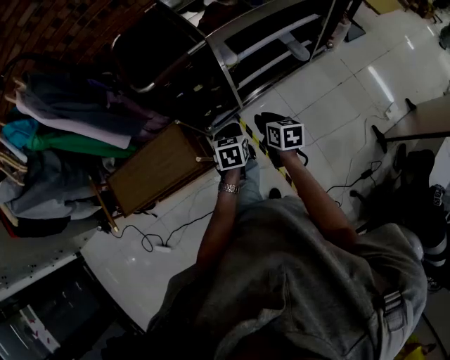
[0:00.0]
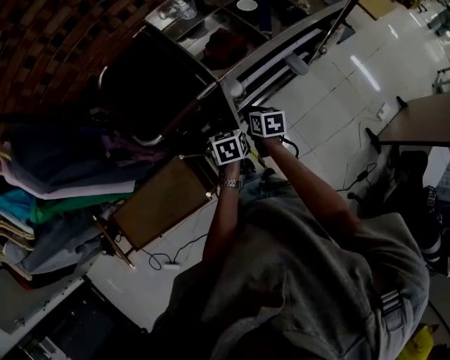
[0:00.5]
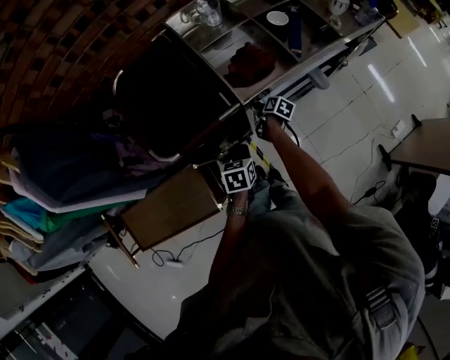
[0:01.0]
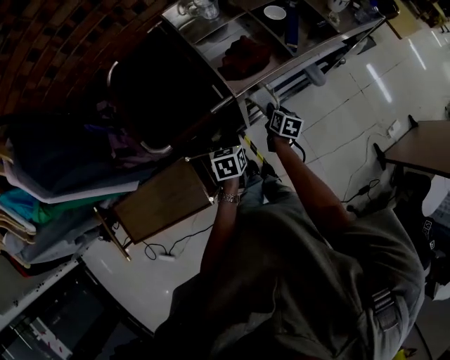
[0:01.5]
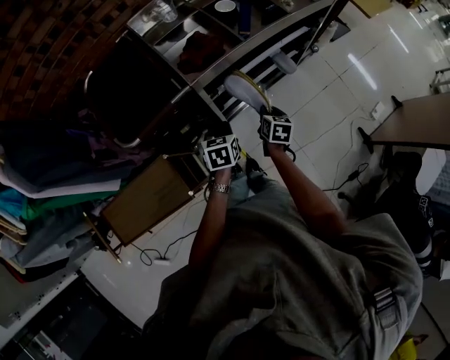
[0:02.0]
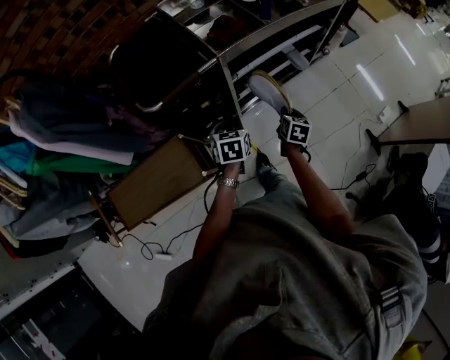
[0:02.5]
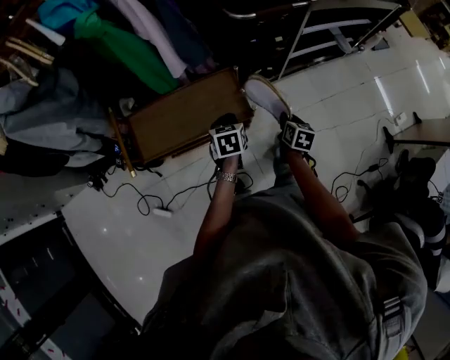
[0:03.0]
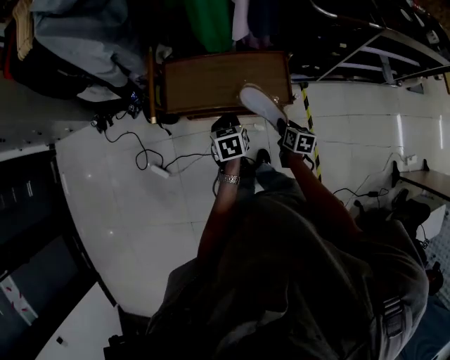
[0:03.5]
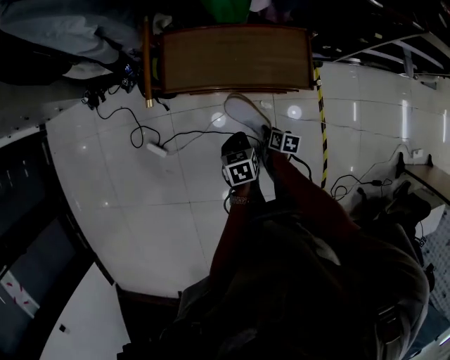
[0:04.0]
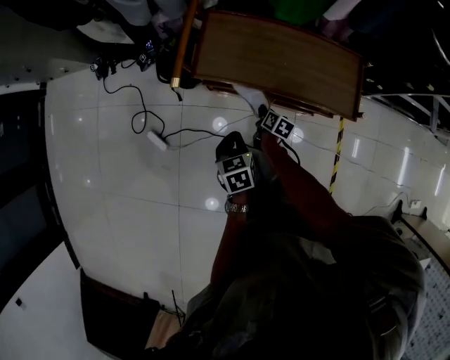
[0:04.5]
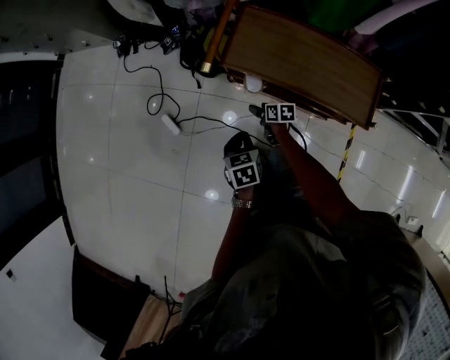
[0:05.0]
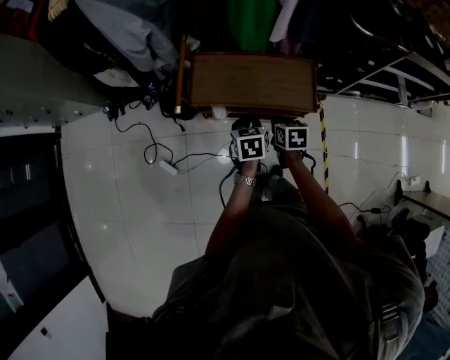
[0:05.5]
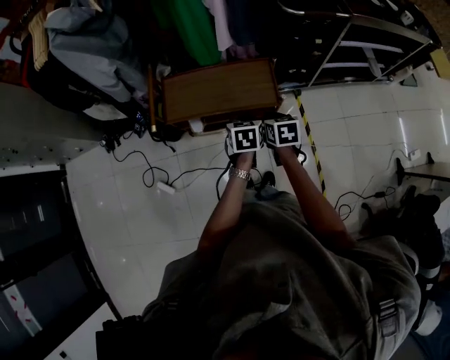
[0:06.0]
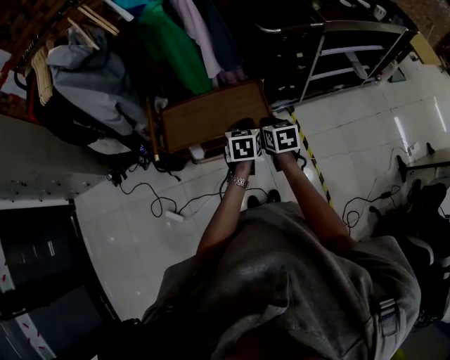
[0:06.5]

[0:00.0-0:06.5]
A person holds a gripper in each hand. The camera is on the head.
0:00.0 to 0:02.0: The left gripper travels forward by some 15 cm. Meanwhile the right gripper moves forward and to the right, about 20 cm, rotates some 20 degrees, and opens, then closes again.
0:02.0 to 0:04.5: The pair of grippers is taken approximately 90 cm. The right gripper turns by roughly 30 degrees, while the left gripper changes its angle by about 50 degrees.
0:04.5 to 0:06.5: The left gripper travels upward by approximately 30 cm, and turns by roughly 40 degrees, while the right gripper goes roughly 50 cm upward, turns by roughly 30 degrees, and opens, then closes once more.

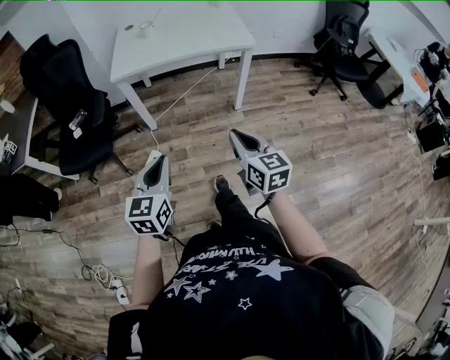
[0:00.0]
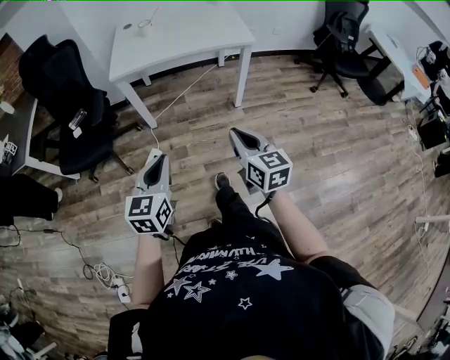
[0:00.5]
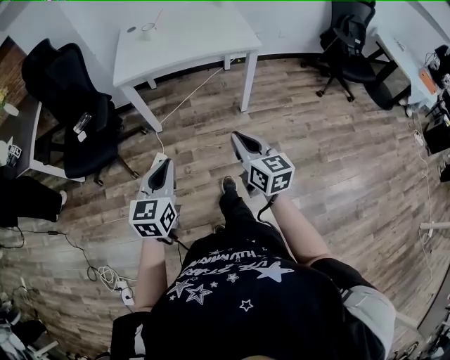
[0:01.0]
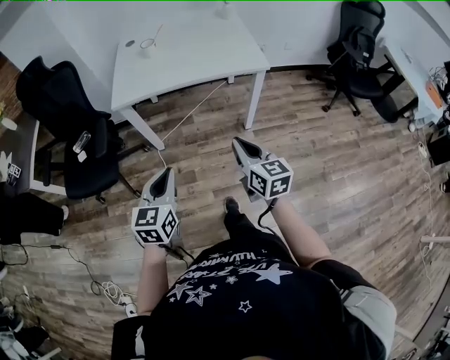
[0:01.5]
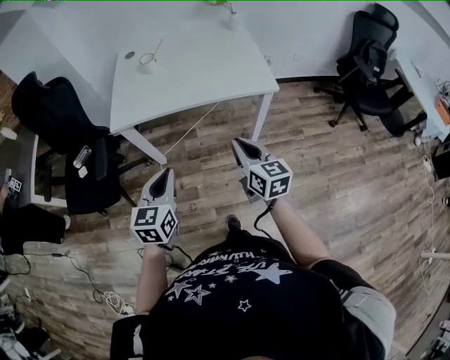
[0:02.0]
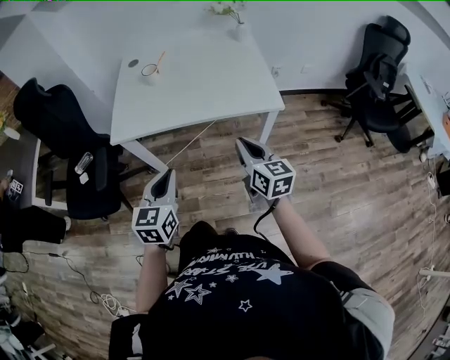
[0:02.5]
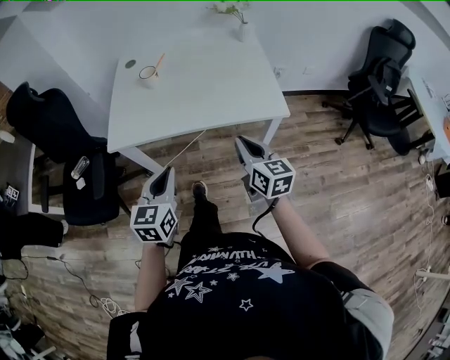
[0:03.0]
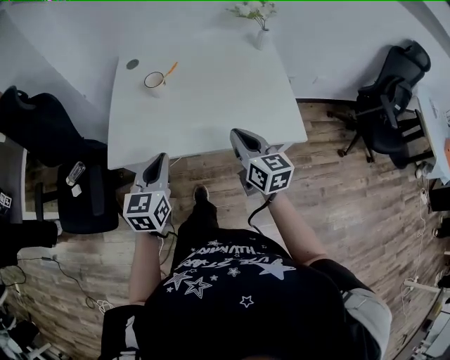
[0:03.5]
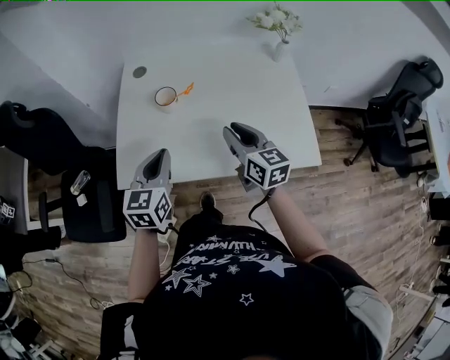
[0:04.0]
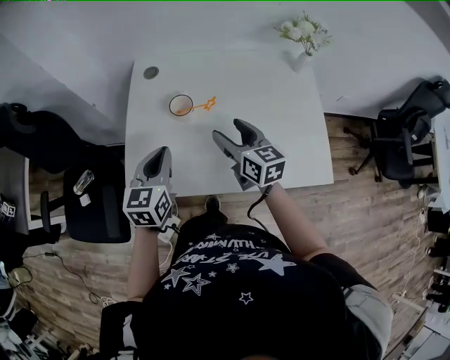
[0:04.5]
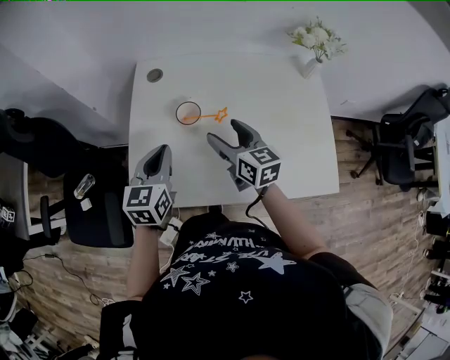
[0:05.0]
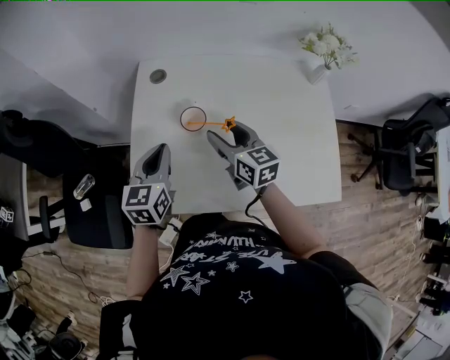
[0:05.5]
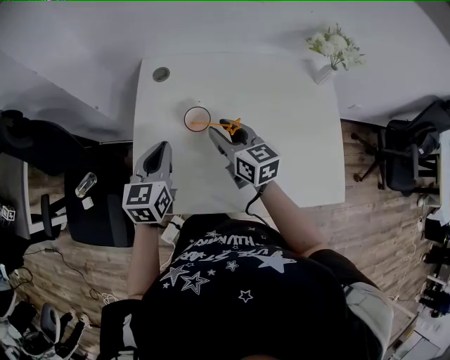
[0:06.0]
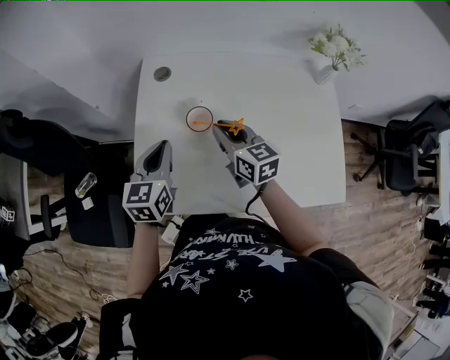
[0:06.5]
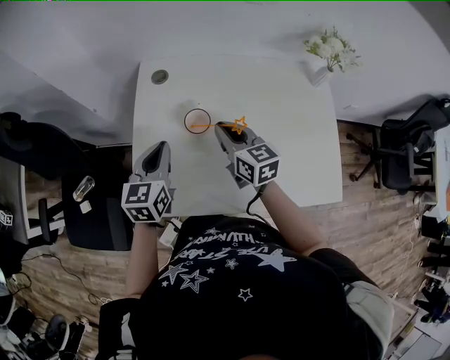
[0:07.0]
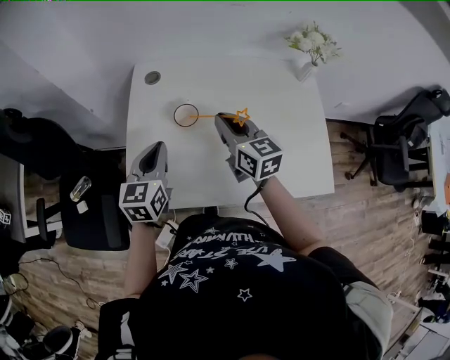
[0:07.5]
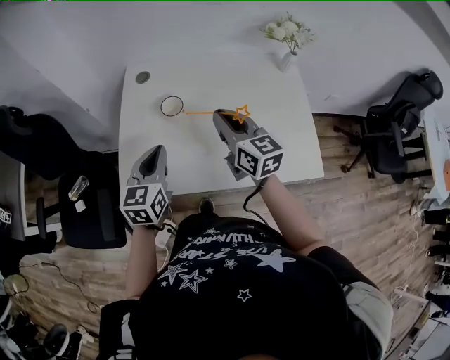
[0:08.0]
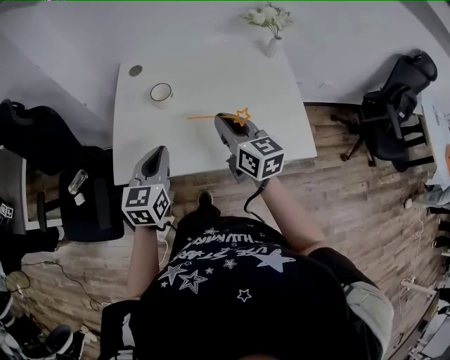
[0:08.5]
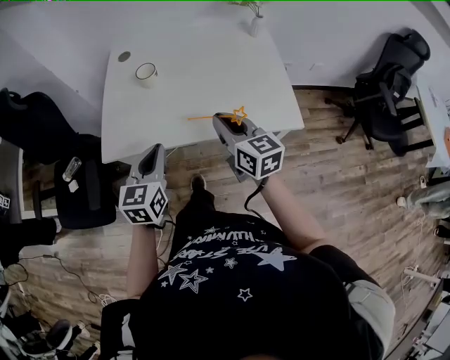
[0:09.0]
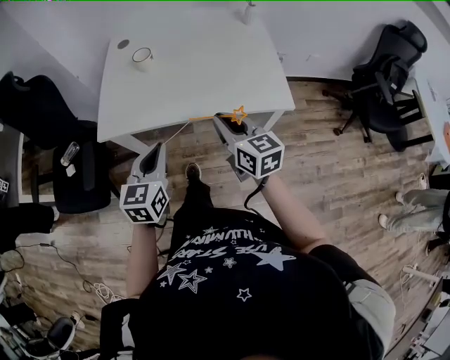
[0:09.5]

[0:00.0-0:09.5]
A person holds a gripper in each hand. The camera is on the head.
0:00.0 to 0:02.0: The two grippers go some 30 cm forward.
0:02.0 to 0:04.0: Both grippers move forward, roughly 40 cm.
0:04.0 to 0:05.5: The two grippers go about 15 cm forward and to the left. The right gripper opens its fingers.
0:05.5 to 0:07.5: The right gripper travels upward by about 5 cm, and closes its fingers.
0:07.5 to 0:09.5: Both grippers travel together backward, about 35 cm.

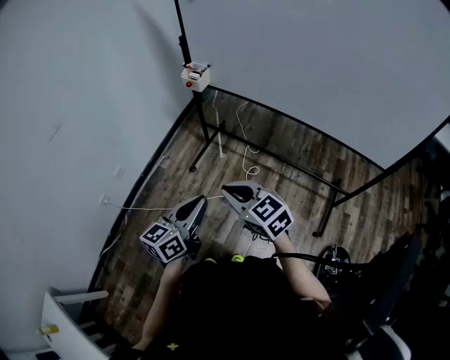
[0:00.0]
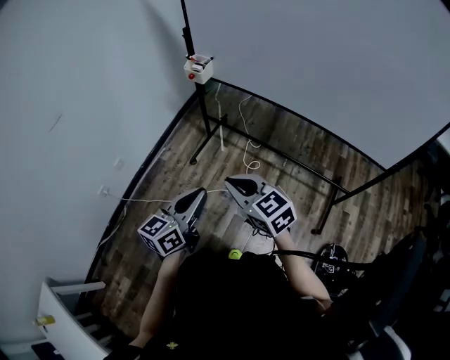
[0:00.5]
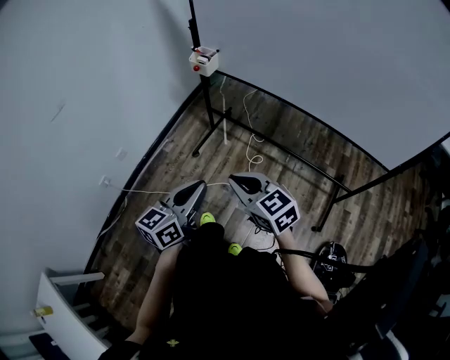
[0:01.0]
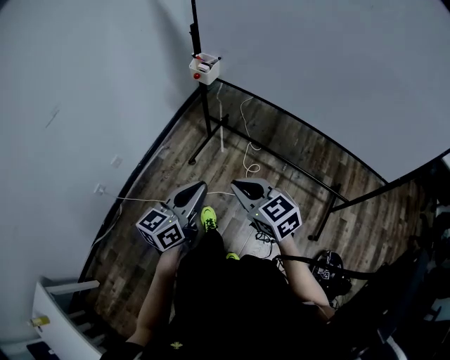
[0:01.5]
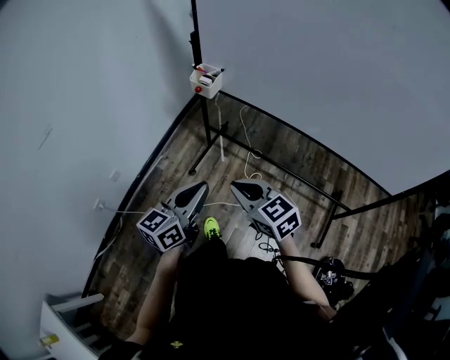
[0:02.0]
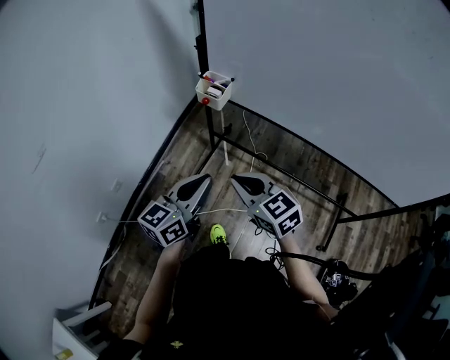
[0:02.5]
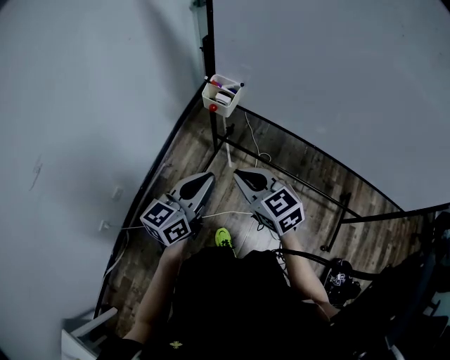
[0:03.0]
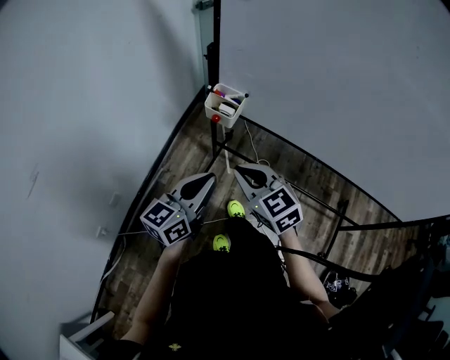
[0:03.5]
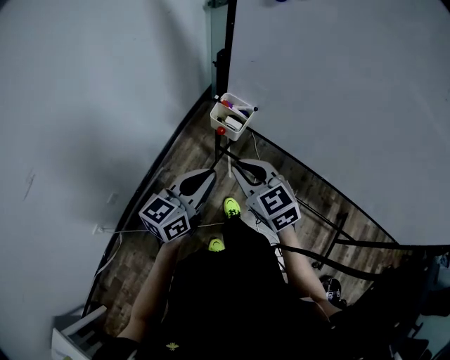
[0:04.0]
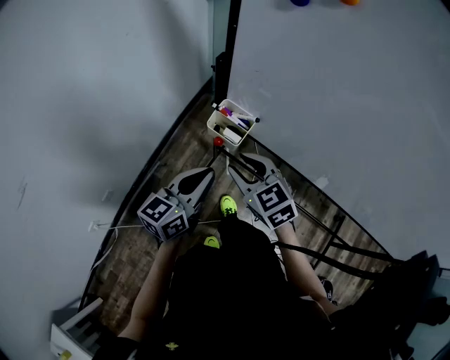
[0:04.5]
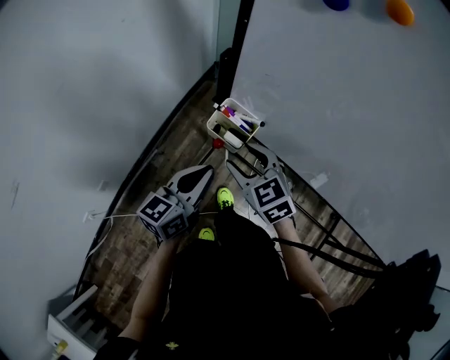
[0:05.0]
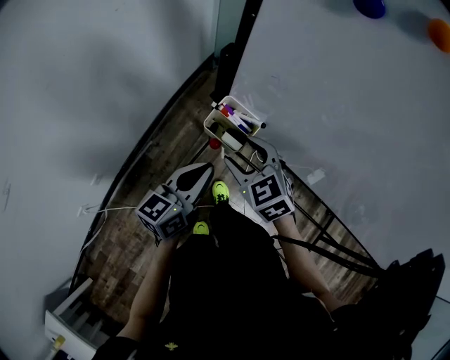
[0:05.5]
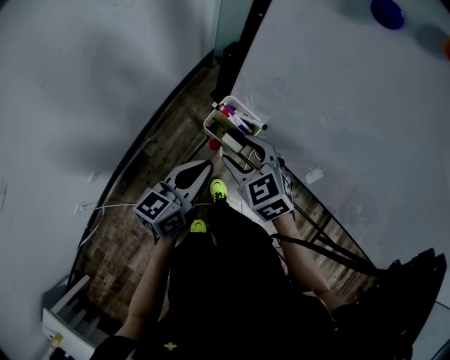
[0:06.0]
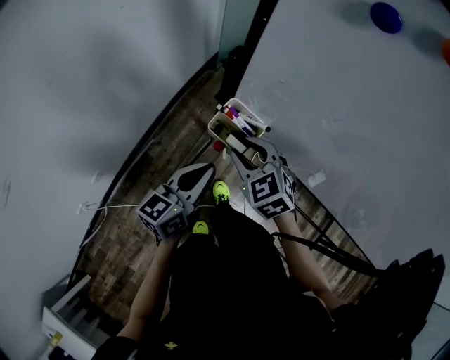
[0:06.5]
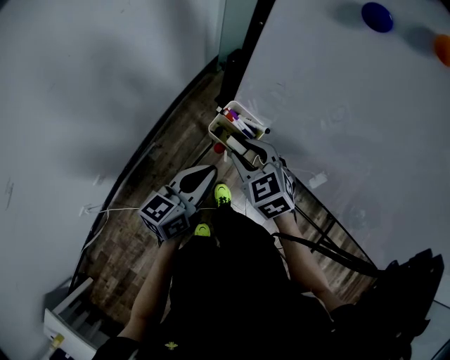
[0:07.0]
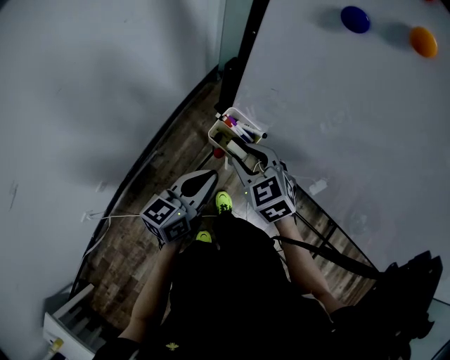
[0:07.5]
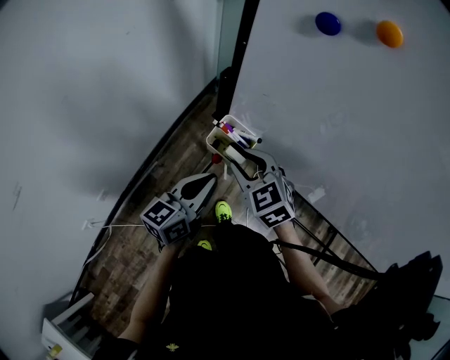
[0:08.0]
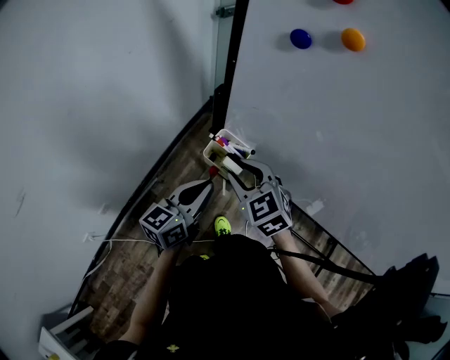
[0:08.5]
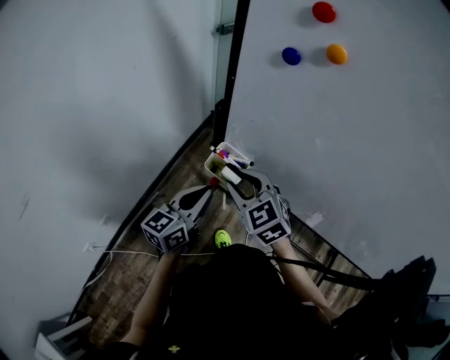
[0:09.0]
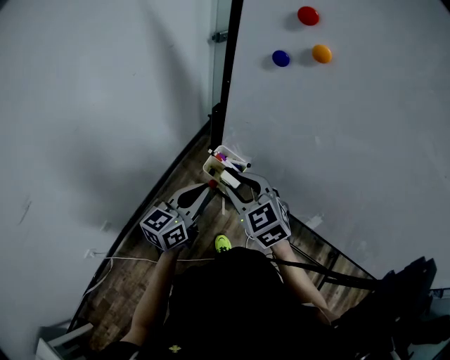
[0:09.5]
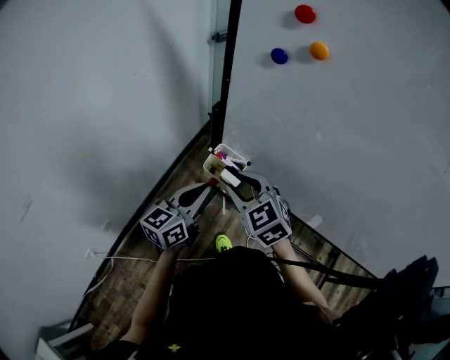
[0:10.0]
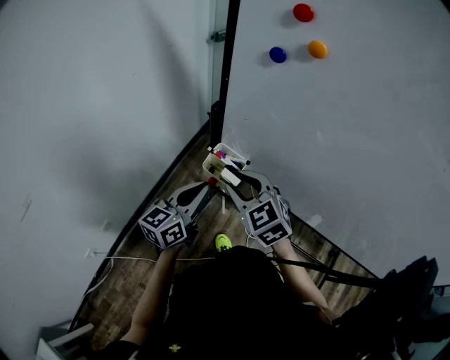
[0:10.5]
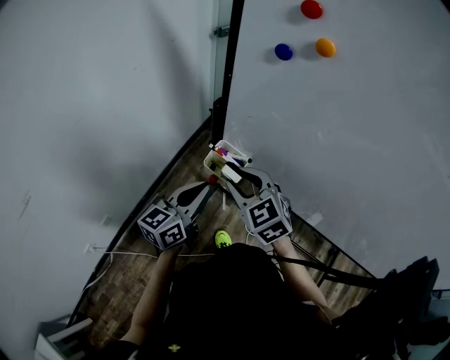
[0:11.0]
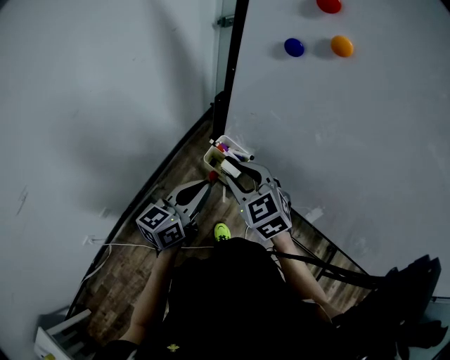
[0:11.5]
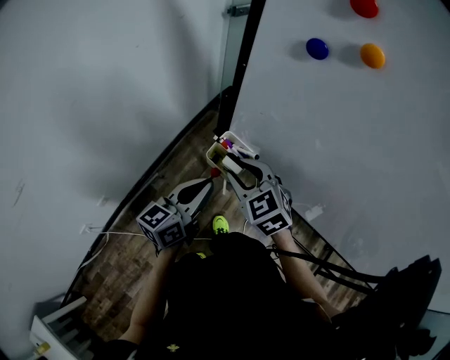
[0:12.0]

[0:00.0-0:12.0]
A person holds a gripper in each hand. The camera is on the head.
0:00.0 to 0:02.0: The two grippers go some 15 cm forward.
0:02.0 to 0:04.0: Both grippers travel together forward, roughly 30 cm.
0:04.0 to 0:06.0: The two grippers go approximately 15 cm forward and downward. The right gripper opens up.
0:06.0 to 0:08.0: The right gripper closes up.
0:08.0 to 0:10.0: The right gripper heads upward, covering some 5 cm.
0:10.0 to 0:12.0: The right gripper moves approximately 5 cm.
